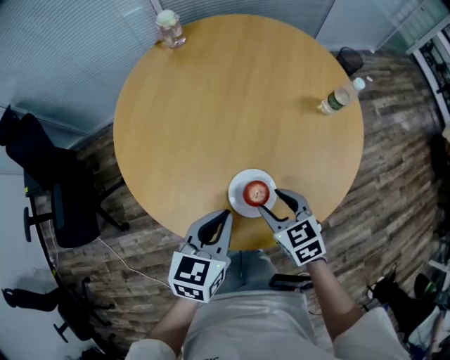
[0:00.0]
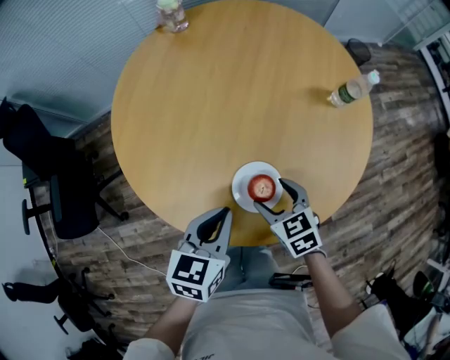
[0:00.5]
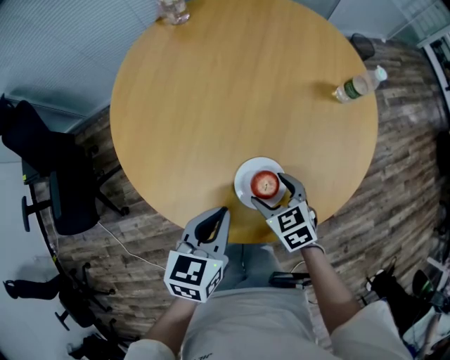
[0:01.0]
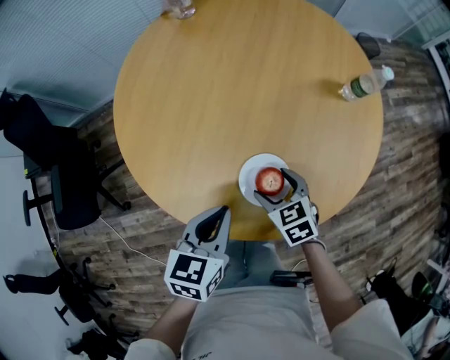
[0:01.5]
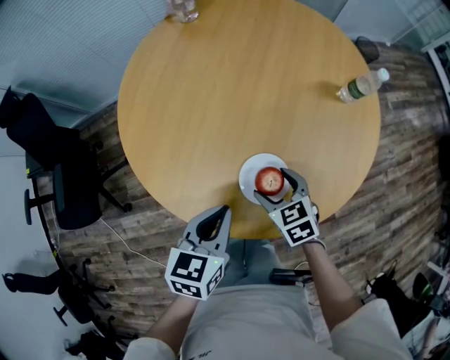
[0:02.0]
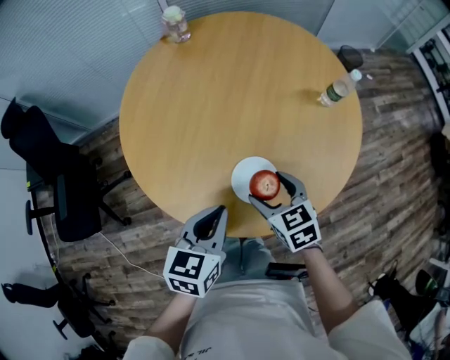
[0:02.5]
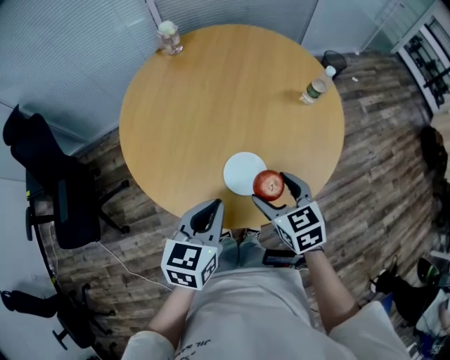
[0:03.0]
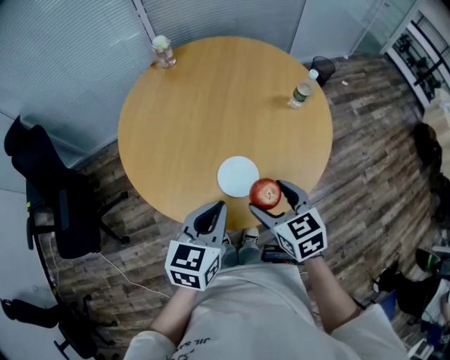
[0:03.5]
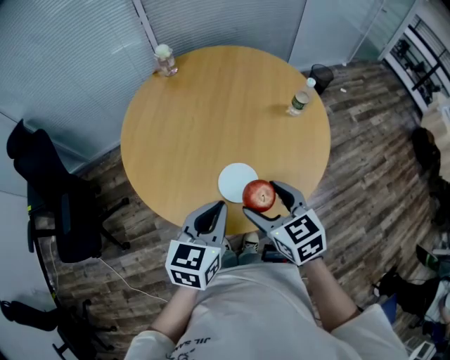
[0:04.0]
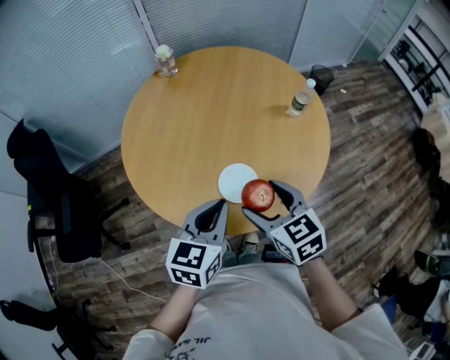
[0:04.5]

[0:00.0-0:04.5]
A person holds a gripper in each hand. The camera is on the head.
0:00.0 to 0:02.0: The right gripper heads downward, covering some 5 cm, and opens up.
0:02.0 to 0:04.5: The left gripper travels upward by some 10 cm, while the right gripper shifts approximately 20 cm upward.

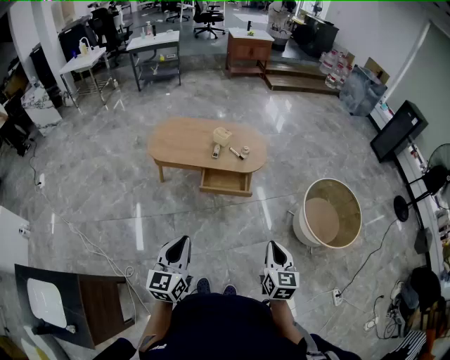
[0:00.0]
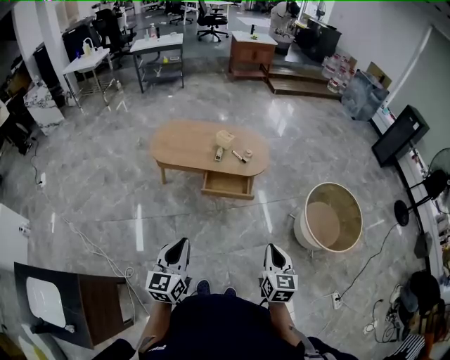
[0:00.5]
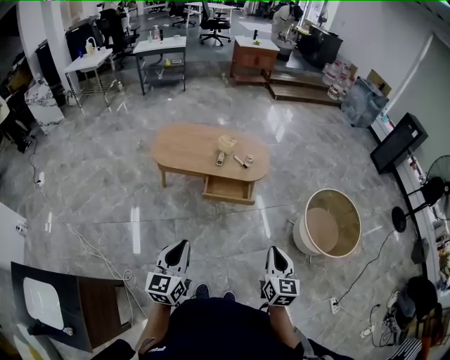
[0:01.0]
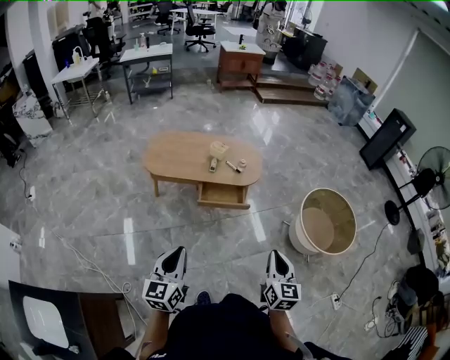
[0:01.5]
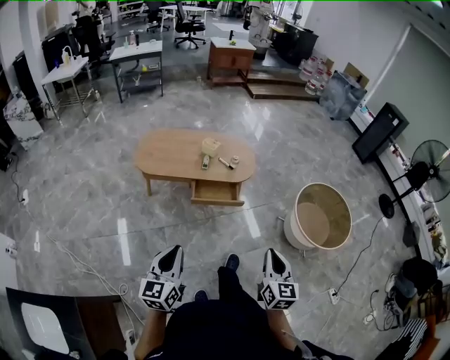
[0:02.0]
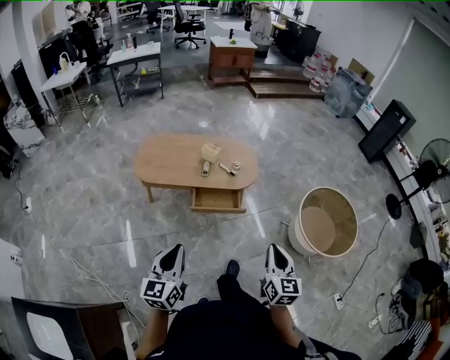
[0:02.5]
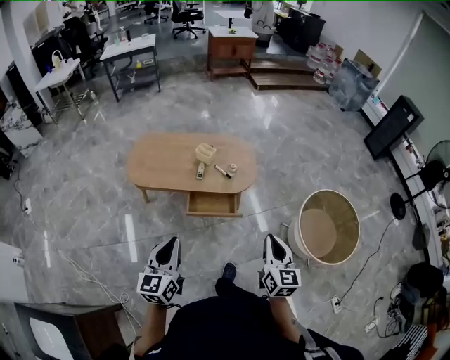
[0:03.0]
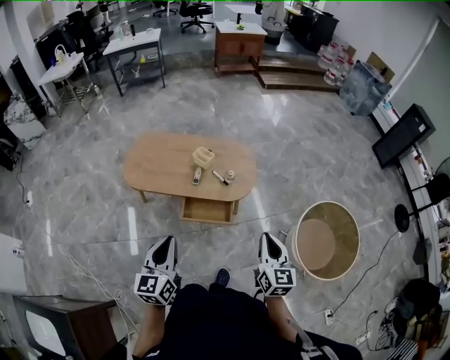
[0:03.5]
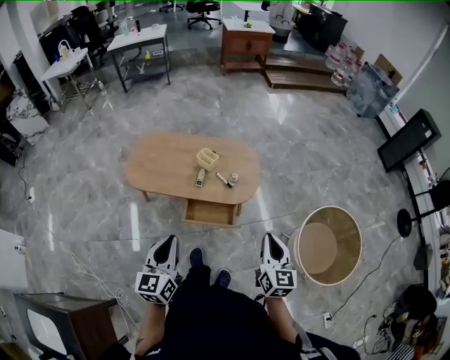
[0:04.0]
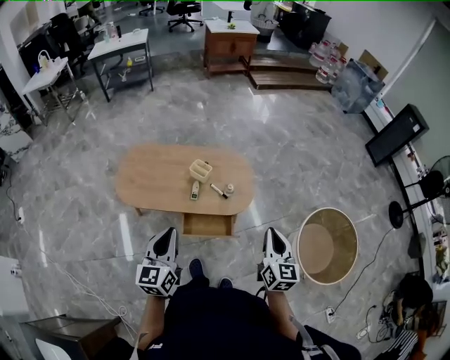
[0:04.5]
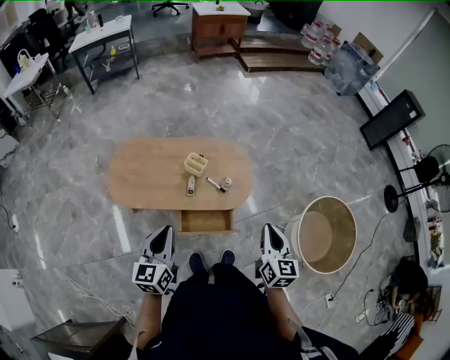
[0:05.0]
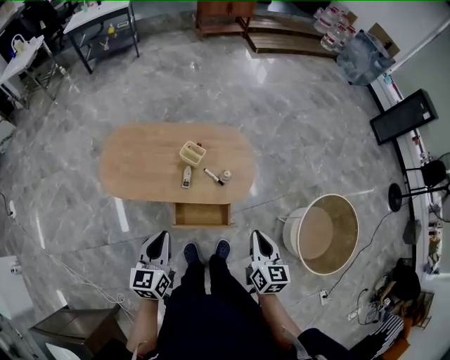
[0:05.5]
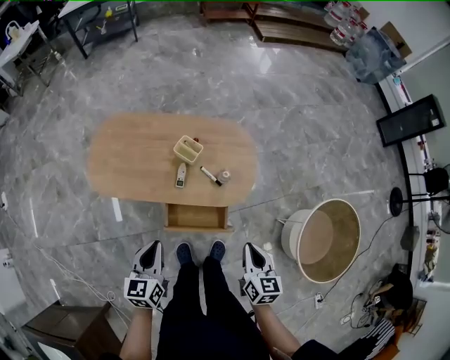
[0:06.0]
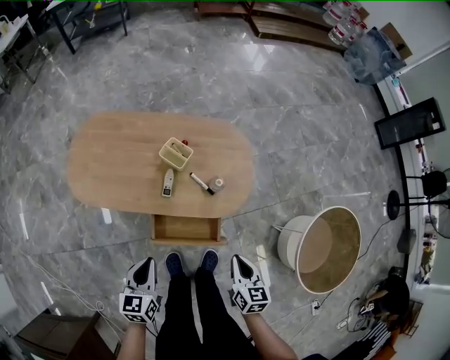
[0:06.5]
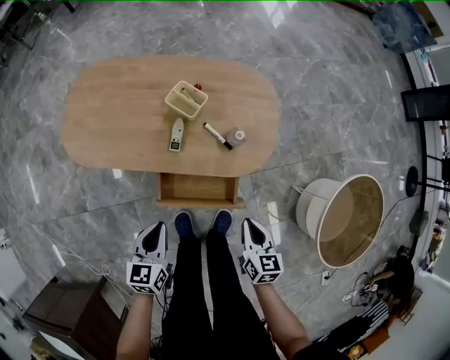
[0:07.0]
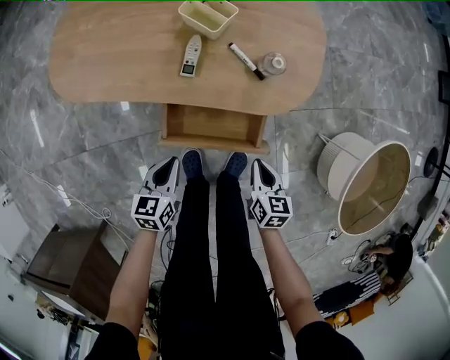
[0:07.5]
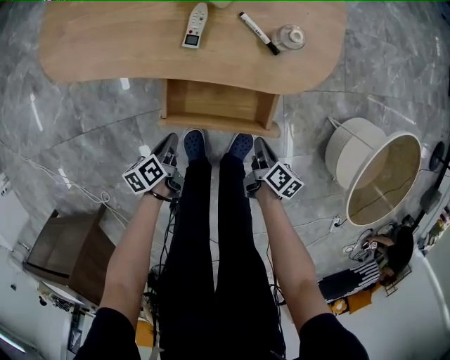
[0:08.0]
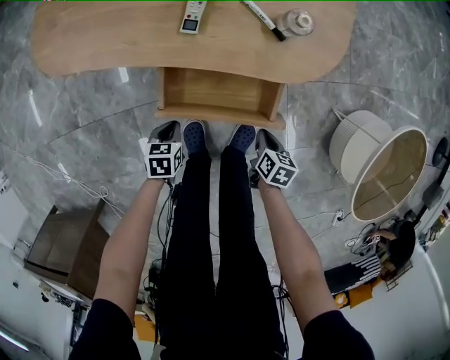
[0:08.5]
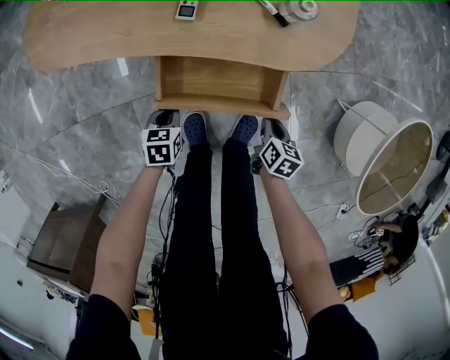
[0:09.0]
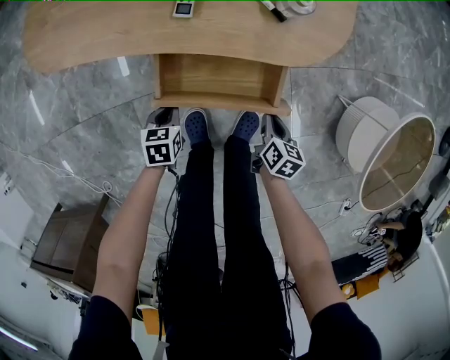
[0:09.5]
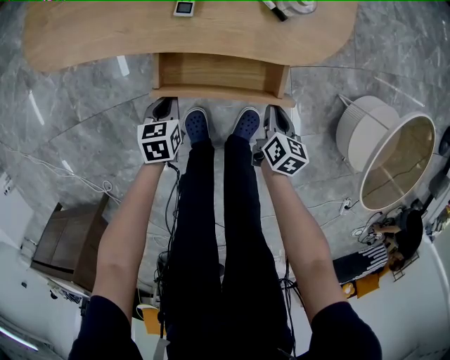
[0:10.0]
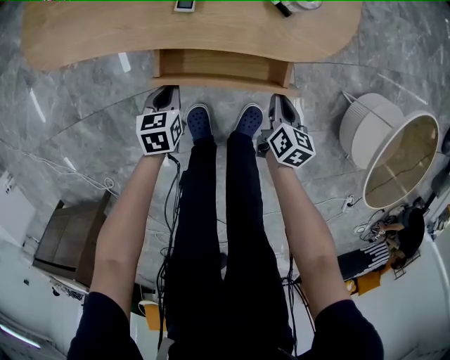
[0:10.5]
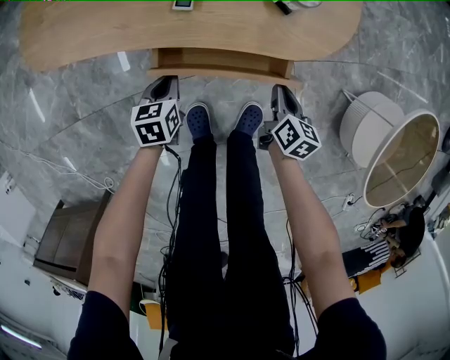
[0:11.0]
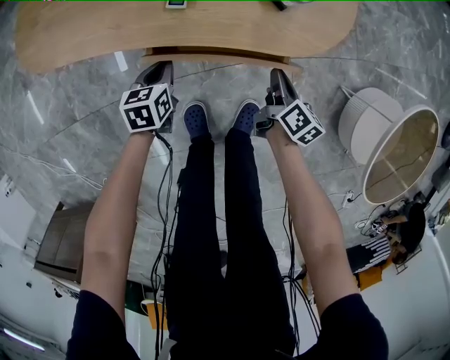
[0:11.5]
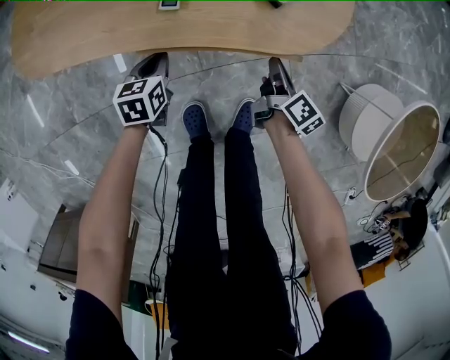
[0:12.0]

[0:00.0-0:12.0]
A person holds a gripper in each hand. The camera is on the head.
0:00.0 to 0:02.0: The grippers both shift to the left by some 5 cm.
0:02.0 to 0:04.0: The two grippers go some 35 cm forward.
0:04.0 to 0:06.0: The right gripper moves downward and forward, some 25 cm, and turns by about 20 degrees. The left gripper is displaced forward and downward by about 30 cm.
0:06.0 to 0:08.0: Both grippers travel together downward, roughly 50 cm. The right gripper rotates around the line of its fingers by about 40 degrees, clockwise from behind; the left gripper twists some 40 degrees counterclockwise, seen from behind.
0:08.0 to 0:10.0: The left gripper shifts by some 5 cm, and rotates some 40 degrees, while the right gripper turns by about 30 degrees.
0:10.0 to 0:12.0: Both grippers move forward, approximately 10 cm. The right gripper changes its angle by some 30 degrees.

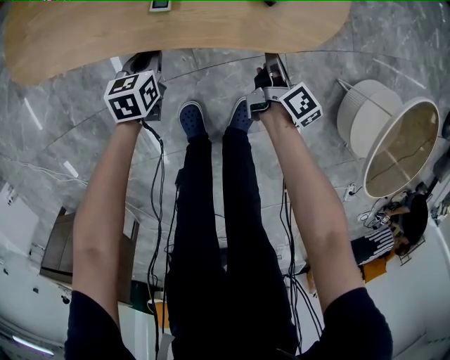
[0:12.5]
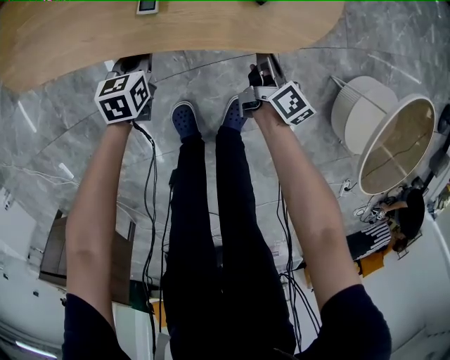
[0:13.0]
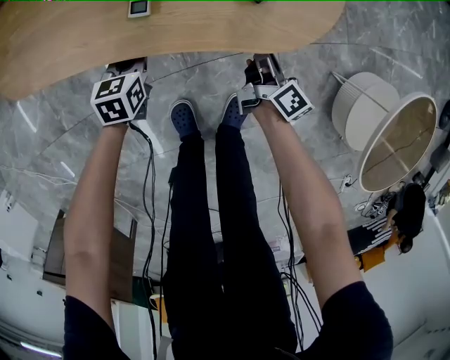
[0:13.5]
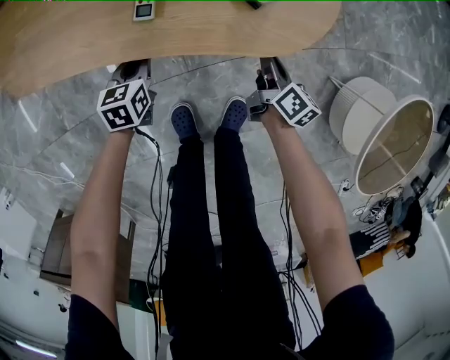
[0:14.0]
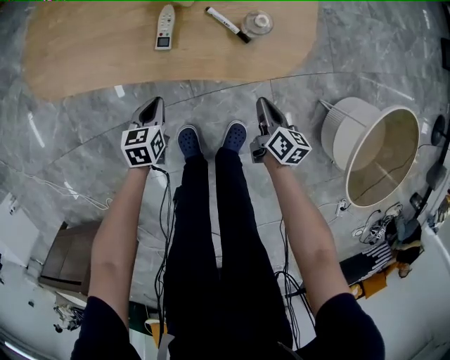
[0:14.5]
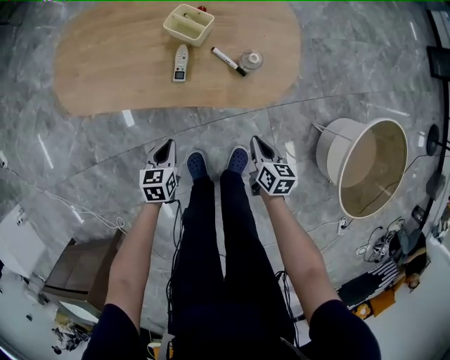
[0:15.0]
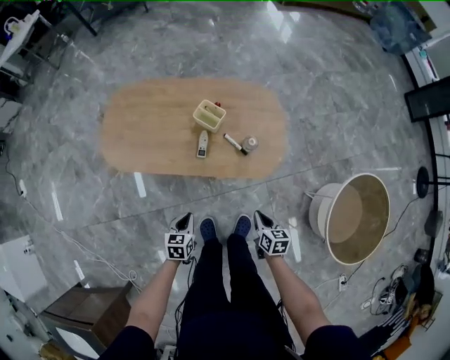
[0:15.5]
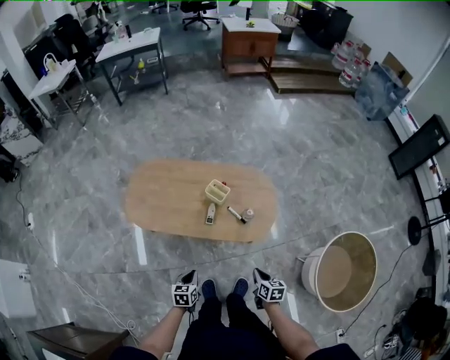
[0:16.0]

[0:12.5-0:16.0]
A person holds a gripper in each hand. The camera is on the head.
0:12.5 to 0:14.5: The right gripper travels upward by about 5 cm, and swivels some 30 degrees. Meanwhile the left gripper shifts approximately 10 cm upward and backward.
0:14.5 to 0:16.0: The left gripper travels upward and backward by approximately 35 cm; the right gripper heads upward, covering roughly 30 cm.

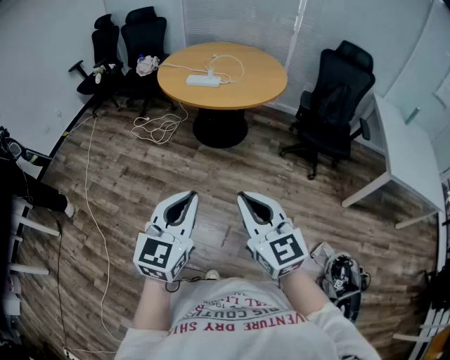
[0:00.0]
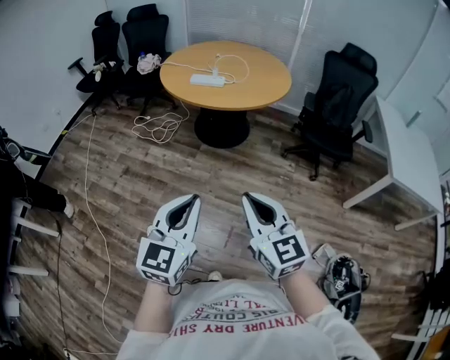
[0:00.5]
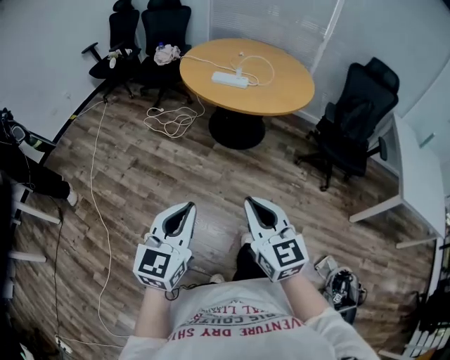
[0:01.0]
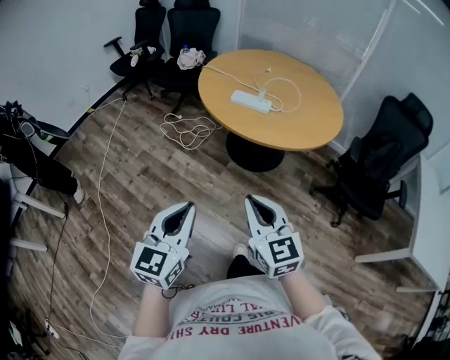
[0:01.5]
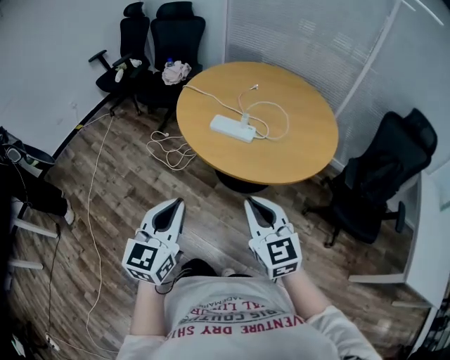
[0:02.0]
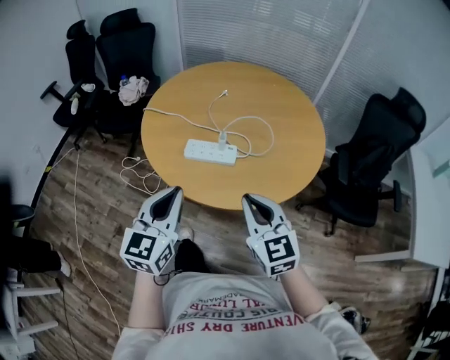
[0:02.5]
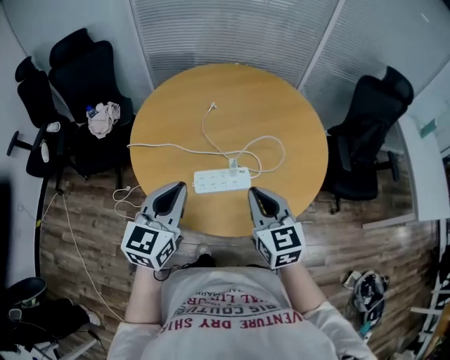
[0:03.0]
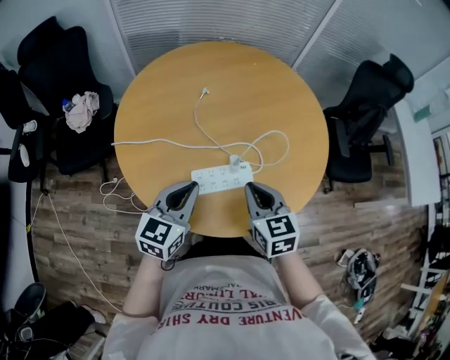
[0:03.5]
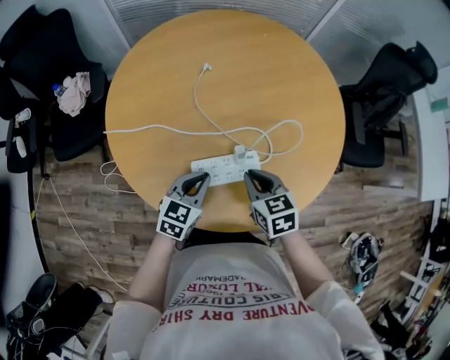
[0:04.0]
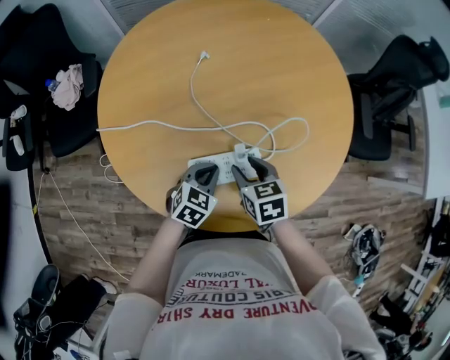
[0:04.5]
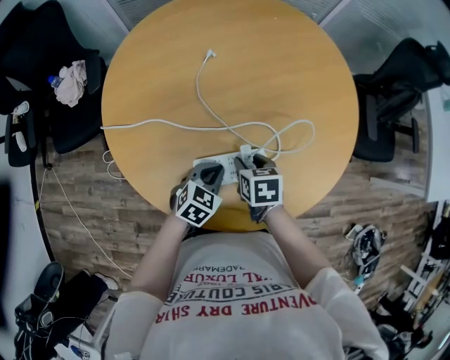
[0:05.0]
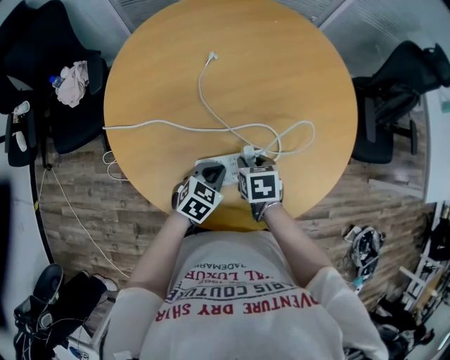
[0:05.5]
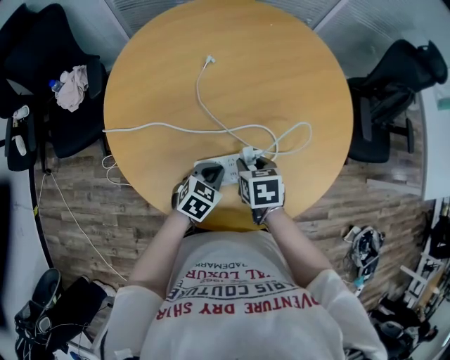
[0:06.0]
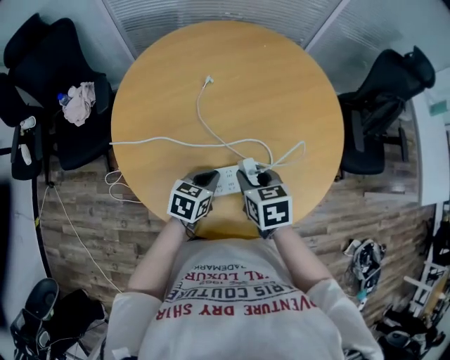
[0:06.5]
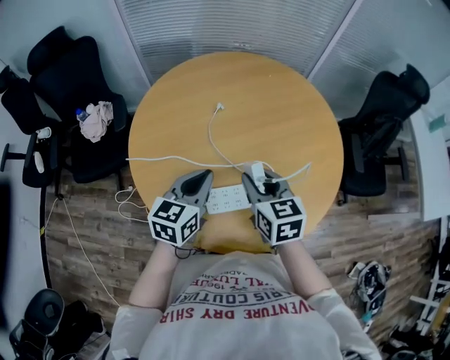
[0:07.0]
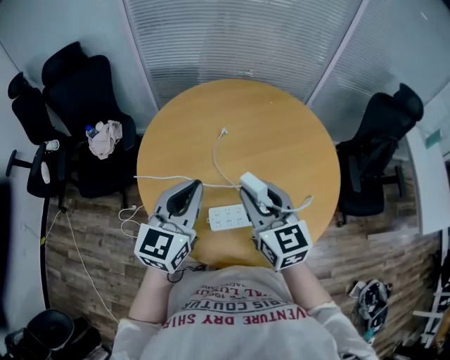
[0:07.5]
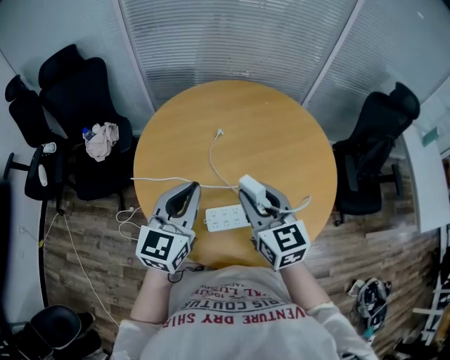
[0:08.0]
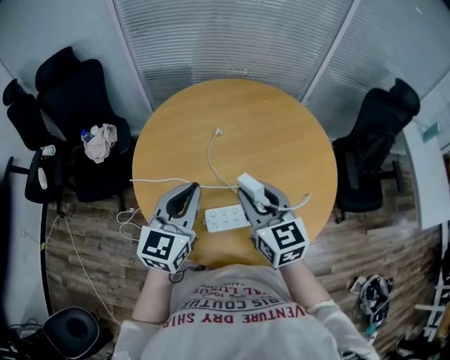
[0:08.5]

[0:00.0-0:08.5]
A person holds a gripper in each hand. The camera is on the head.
0:00.0 to 0:02.0: The pair of grippers is taken forward, about 40 cm.
0:02.0 to 0:04.0: The right gripper ends up some 40 cm from where it was, and tilts its fingers approximately 30 degrees downward. Meanwhile the left gripper shifts by about 50 cm, and changes its angle by about 50 degrees.
0:04.0 to 0:06.5: The right gripper reaches approximately 10 cm downward, then returns, and opens; the left gripper goes downward and returns, about 10 cm each way.
0:06.5 to 0:08.5: The grippers both shift upward by some 25 cm. The left gripper angles its fingers upward, by approximately 30 degrees. Meanwhile the right gripper points its fingers about 30 degrees further upward.
